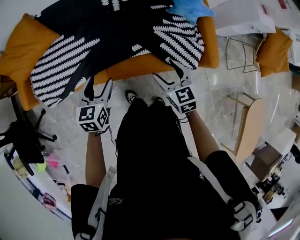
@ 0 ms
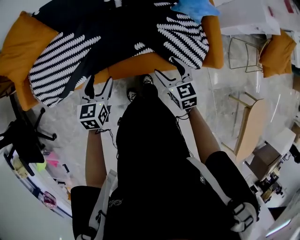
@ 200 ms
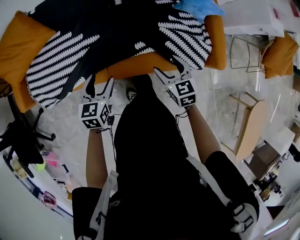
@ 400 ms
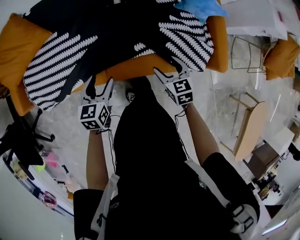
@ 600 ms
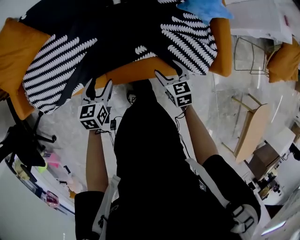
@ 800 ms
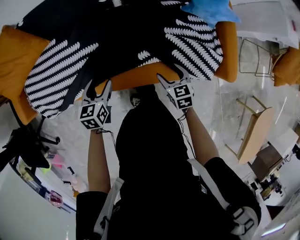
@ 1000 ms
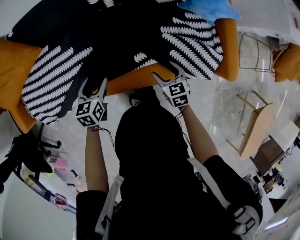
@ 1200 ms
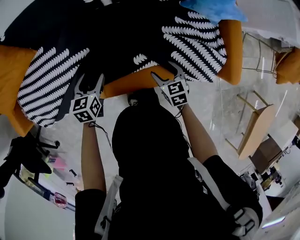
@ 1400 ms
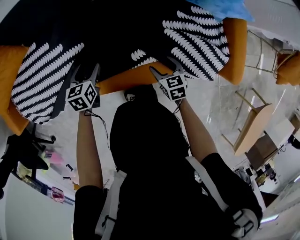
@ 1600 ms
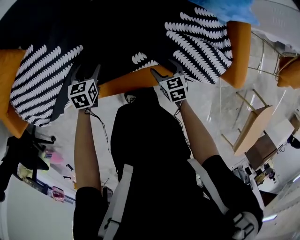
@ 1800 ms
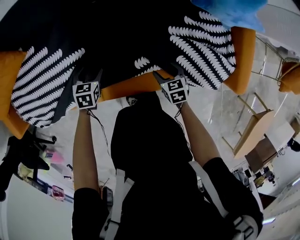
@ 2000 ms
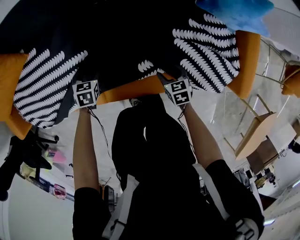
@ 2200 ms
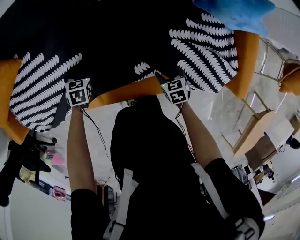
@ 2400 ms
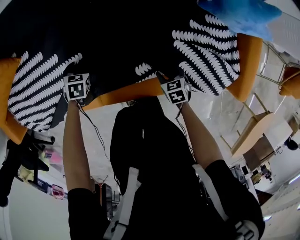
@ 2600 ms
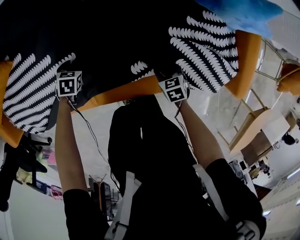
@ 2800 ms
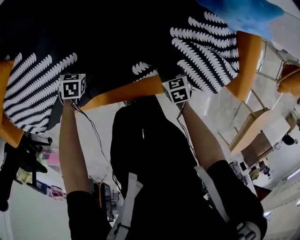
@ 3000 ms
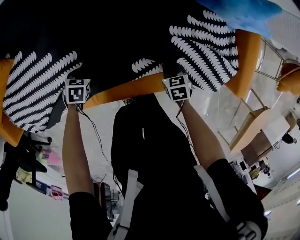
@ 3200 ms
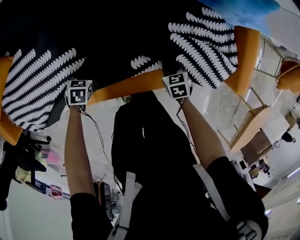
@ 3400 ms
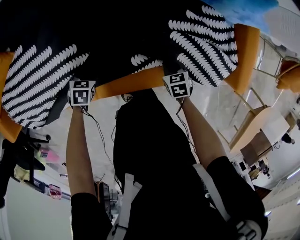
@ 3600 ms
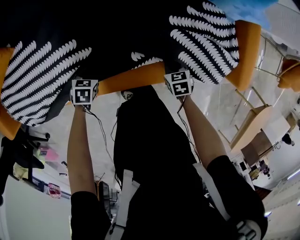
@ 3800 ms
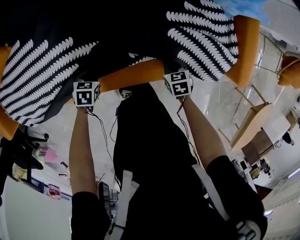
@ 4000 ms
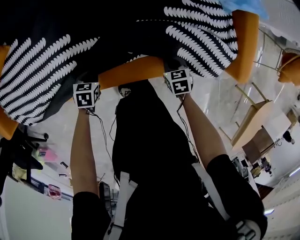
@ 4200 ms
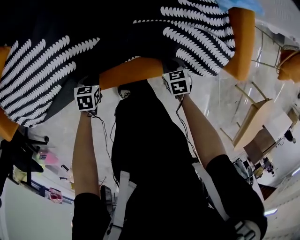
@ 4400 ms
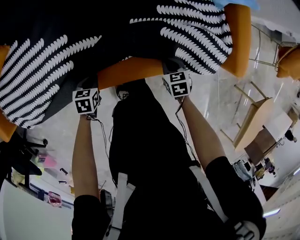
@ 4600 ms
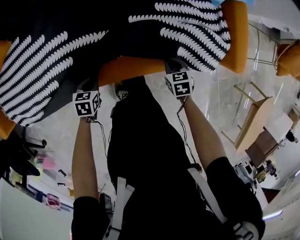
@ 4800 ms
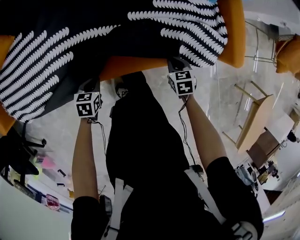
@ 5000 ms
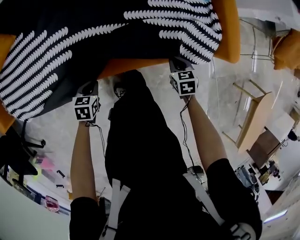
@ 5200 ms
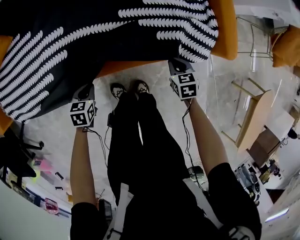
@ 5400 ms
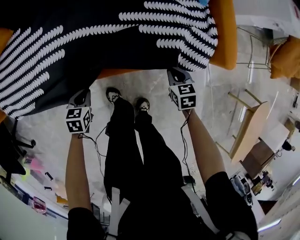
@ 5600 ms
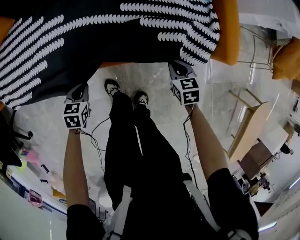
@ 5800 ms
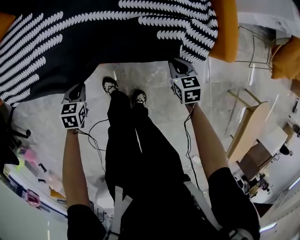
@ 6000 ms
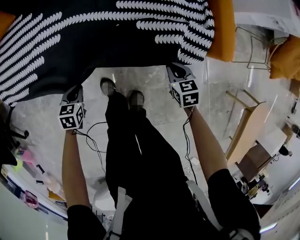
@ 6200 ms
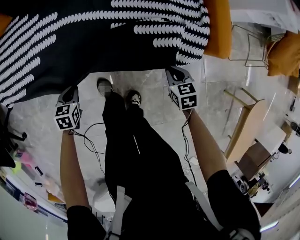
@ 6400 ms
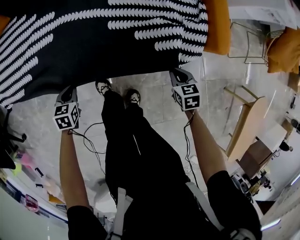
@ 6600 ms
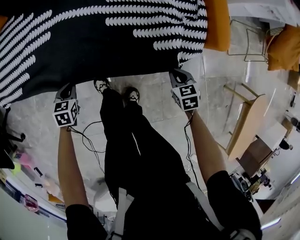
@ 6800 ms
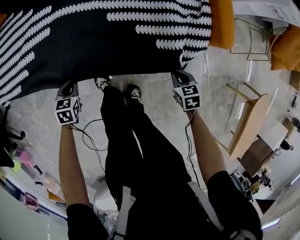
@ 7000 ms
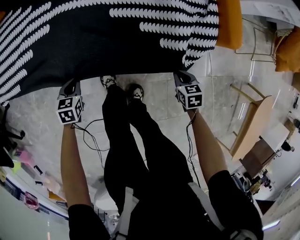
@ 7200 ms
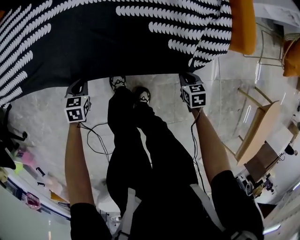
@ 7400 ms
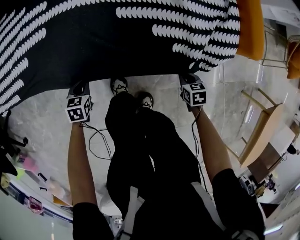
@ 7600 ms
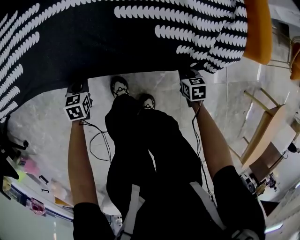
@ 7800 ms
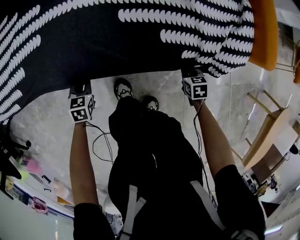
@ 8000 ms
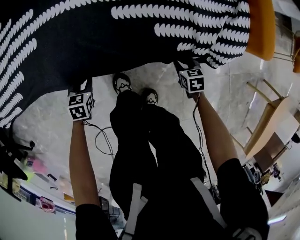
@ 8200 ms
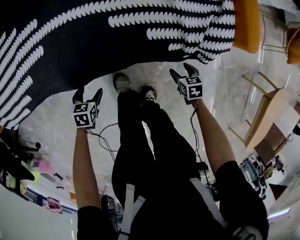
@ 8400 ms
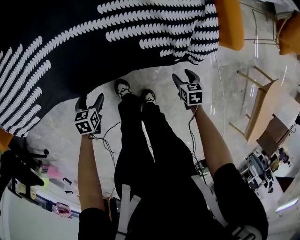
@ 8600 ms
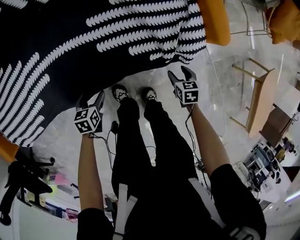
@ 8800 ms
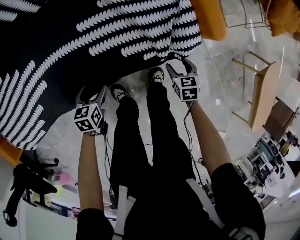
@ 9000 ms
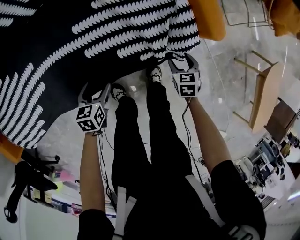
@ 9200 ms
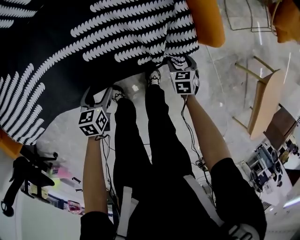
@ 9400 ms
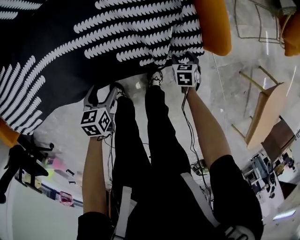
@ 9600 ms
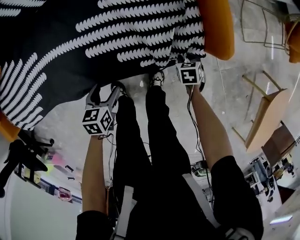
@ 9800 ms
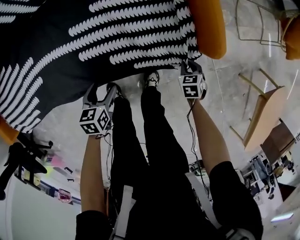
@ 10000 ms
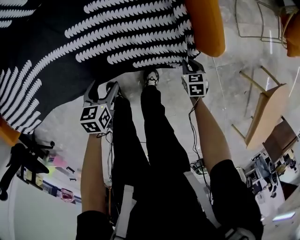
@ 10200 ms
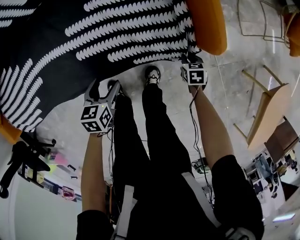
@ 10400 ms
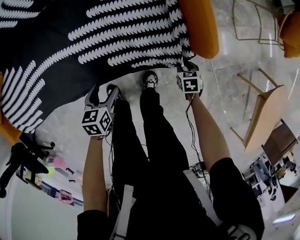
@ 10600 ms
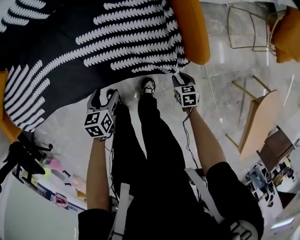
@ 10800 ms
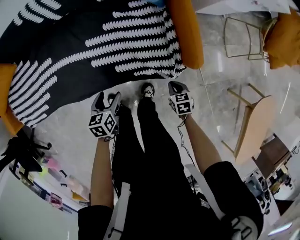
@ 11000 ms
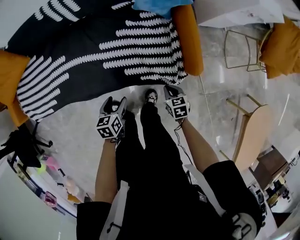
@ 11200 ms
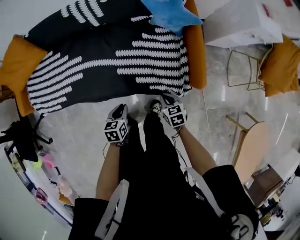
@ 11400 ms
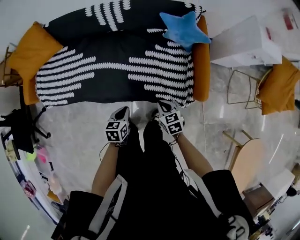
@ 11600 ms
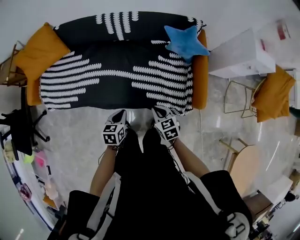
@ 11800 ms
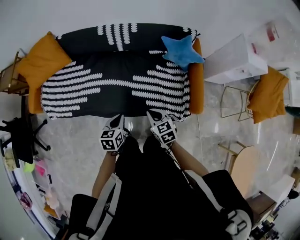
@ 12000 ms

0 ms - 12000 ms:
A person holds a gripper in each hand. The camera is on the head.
0 ms - 1600 ms: The right gripper moves downward, about 35 cm, and rotates approximately 20 degrees; the left gripper moves downward and forward, approximately 40 cm, and turns by approximately 20 degrees.
1600 ms - 3000 ms: The left gripper travels downward by approximately 15 cm, swivels roughly 30 degrees, and closes its fingers, while the right gripper goes roughly 10 cm downward, and closes its fingers.
3000 ms - 4400 ms: The left gripper shifts by some 15 cm. Meanwhile the right gripper shifts by roughly 5 cm, and closes up.
4400 ms - 6000 ms: The right gripper moves upward, backward and to the right, roughly 15 cm; the left gripper travels backward and upward by roughly 15 cm.
6000 ms - 7600 ms: The left gripper shifts approximately 20 cm downward. The right gripper heads downward and backward, covering roughly 25 cm.
7600 ms - 9000 ms: The right gripper travels upward by about 15 cm, and opens, while the left gripper changes place by some 25 cm, and opens up.
9000 ms - 10400 ms: The left gripper shifts by roughly 15 cm. The right gripper shifts by approximately 15 cm, and closes.
10400 ms - 12000 ms: The grippers both shift upward by some 40 cm. The left gripper rotates some 20 degrees, and closes; the right gripper tilts its fingers roughly 30 degrees upward.

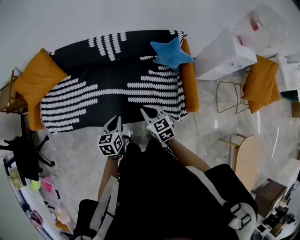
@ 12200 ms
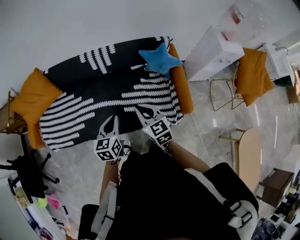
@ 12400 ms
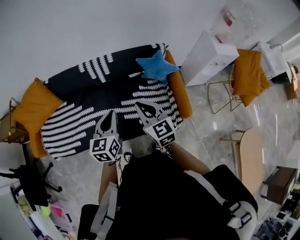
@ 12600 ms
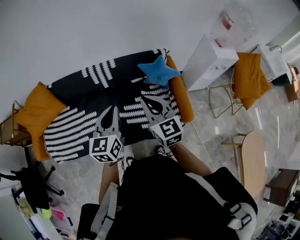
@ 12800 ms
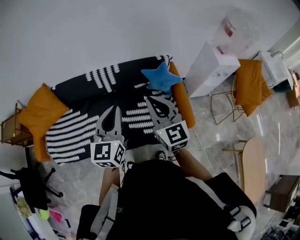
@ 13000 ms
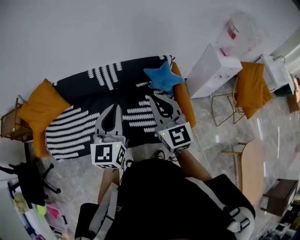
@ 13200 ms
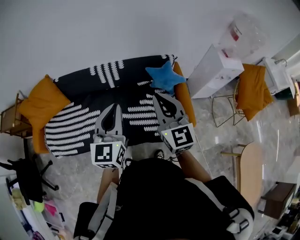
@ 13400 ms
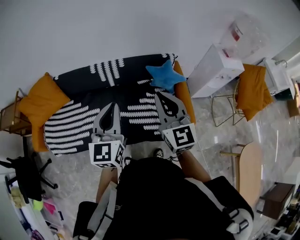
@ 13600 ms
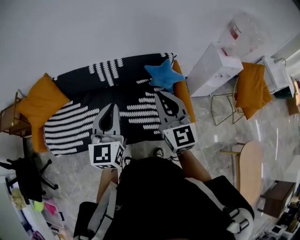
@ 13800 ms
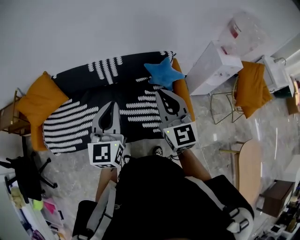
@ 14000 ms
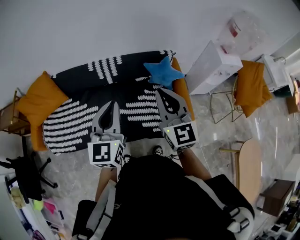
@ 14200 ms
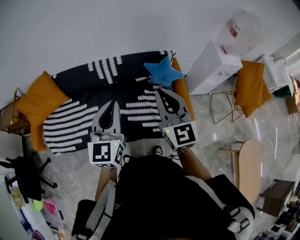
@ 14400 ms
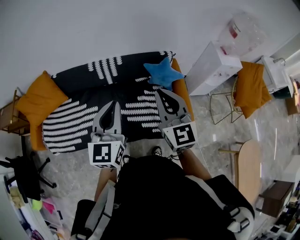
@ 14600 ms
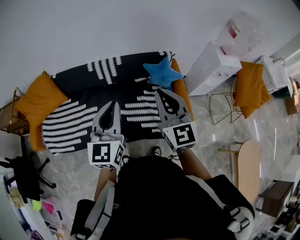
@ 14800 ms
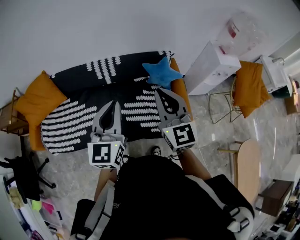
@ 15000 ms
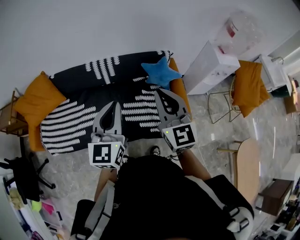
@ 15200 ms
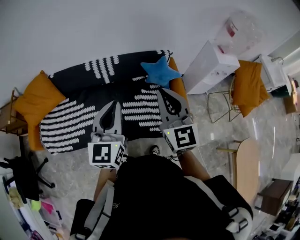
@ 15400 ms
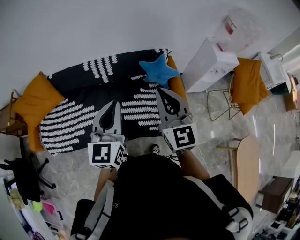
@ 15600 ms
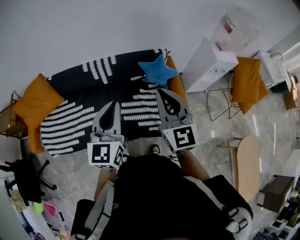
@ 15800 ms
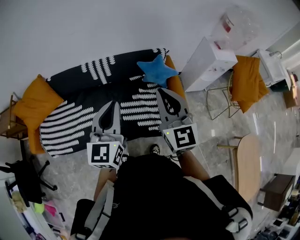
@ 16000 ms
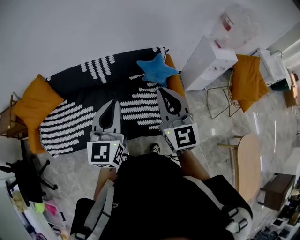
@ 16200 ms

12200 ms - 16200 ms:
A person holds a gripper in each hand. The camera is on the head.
12200 ms - 13600 ms: Both grippers travel together upward, roughly 30 cm. The left gripper tilts its fingers approximately 30 degrees upward. The right gripper points its fingers some 30 degrees further upward.
13600 ms - 16200 ms: There are only small adjustments of the grippers.

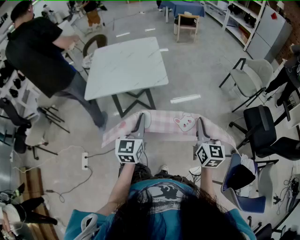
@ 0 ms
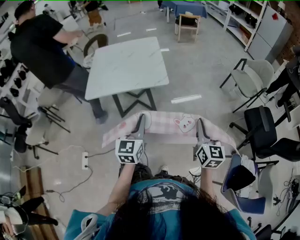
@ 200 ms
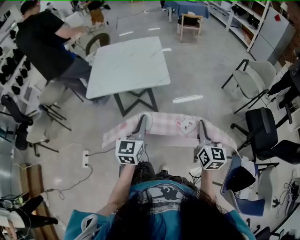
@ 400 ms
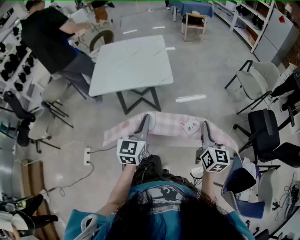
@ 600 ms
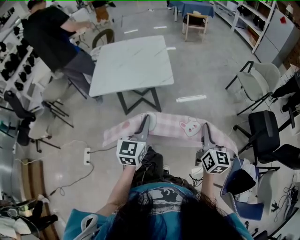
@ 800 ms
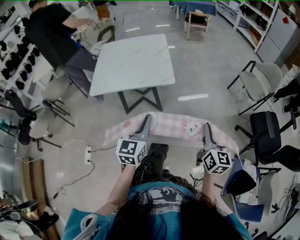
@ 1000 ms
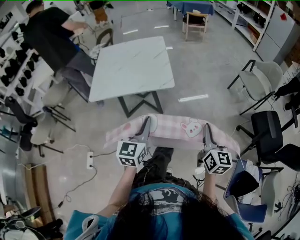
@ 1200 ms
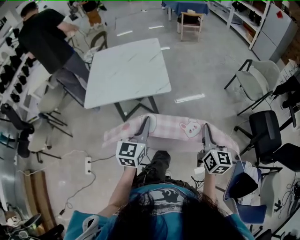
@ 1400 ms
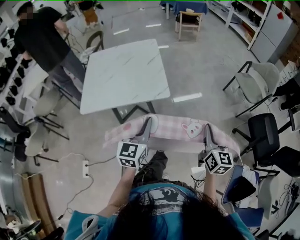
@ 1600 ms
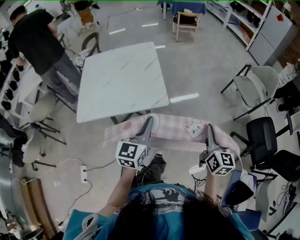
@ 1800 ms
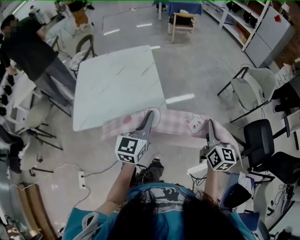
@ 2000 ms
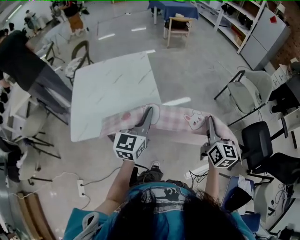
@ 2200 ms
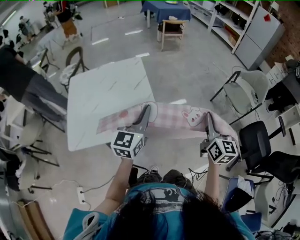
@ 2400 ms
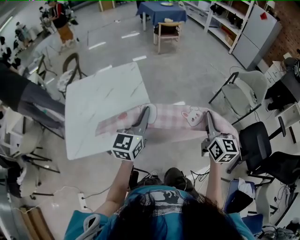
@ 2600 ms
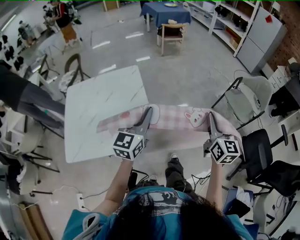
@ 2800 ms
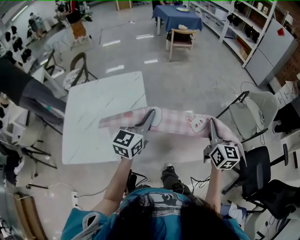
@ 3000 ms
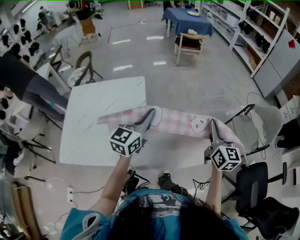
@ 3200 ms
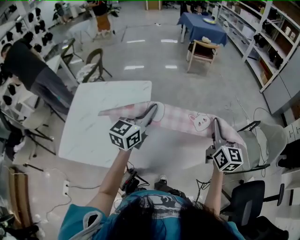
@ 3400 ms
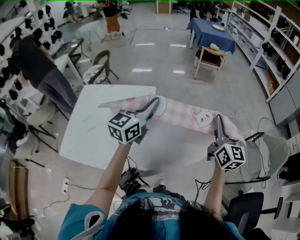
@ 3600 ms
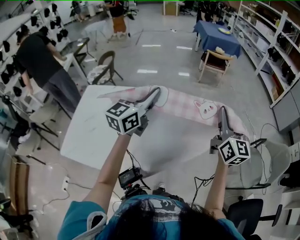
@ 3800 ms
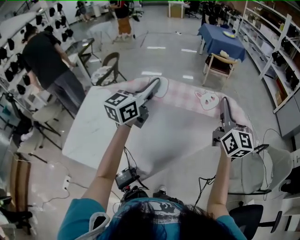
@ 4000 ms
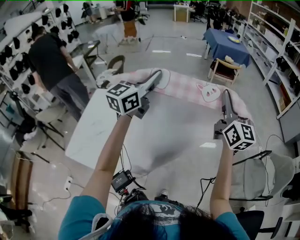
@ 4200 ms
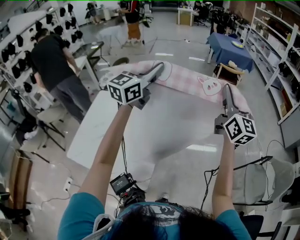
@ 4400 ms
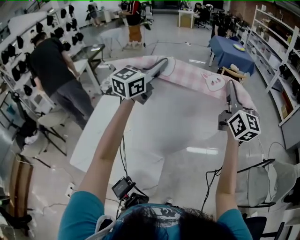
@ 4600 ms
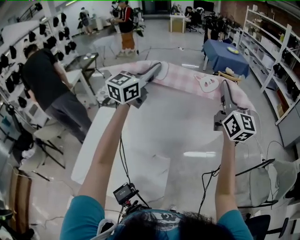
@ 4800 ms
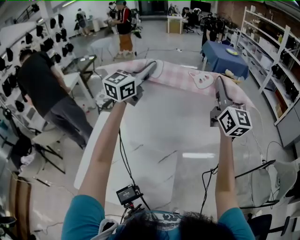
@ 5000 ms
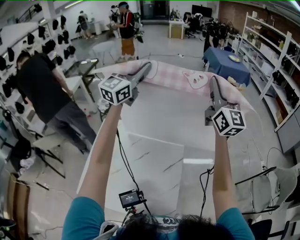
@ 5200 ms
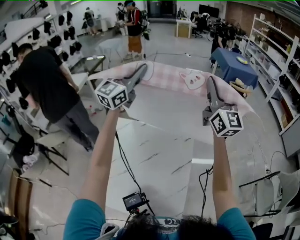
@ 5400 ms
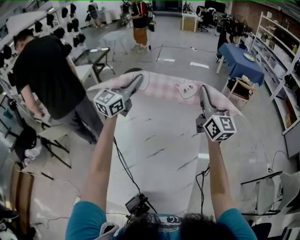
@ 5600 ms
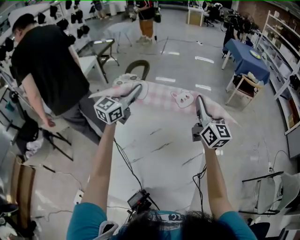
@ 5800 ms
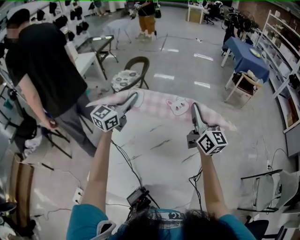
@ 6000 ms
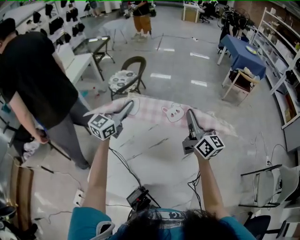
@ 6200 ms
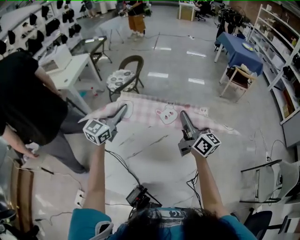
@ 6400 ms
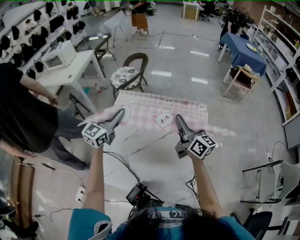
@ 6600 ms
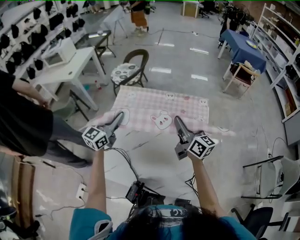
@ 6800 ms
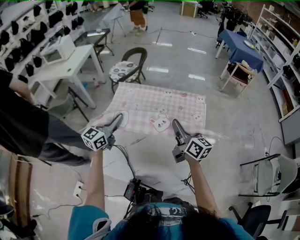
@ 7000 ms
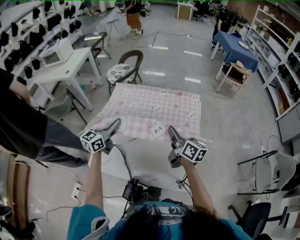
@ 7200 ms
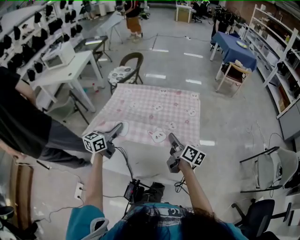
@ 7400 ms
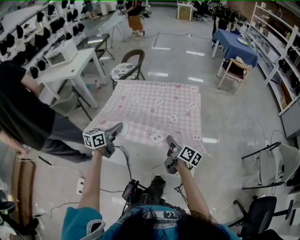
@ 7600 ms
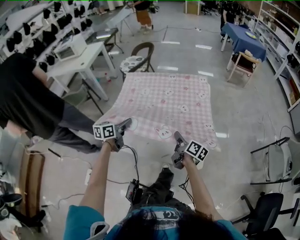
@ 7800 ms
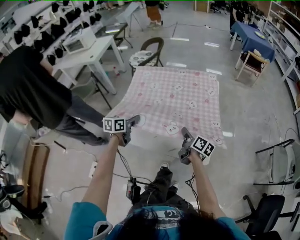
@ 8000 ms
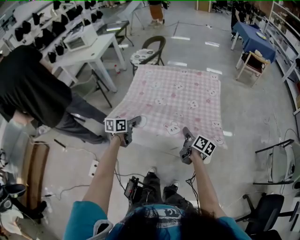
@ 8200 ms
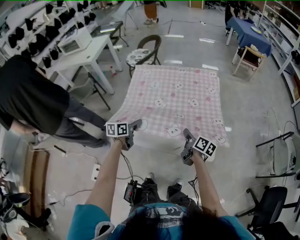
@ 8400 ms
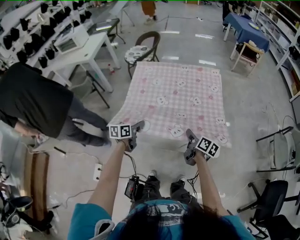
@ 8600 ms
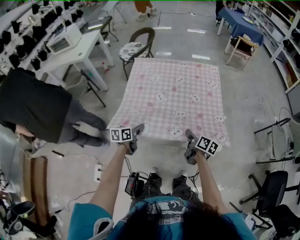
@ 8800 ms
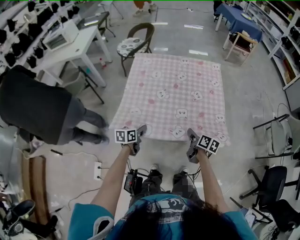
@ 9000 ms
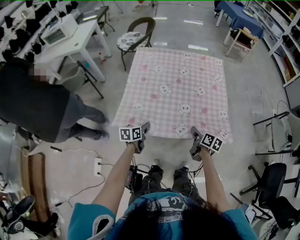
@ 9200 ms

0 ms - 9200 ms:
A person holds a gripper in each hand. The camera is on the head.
0 ms - 1600 ms: Both grippers move forward, some 10 cm.
1600 ms - 3000 ms: The two grippers go roughly 35 cm forward.
3000 ms - 4600 ms: The two grippers go some 40 cm forward, upward and to the left. The right gripper swivels about 30 degrees.
4600 ms - 6200 ms: The grippers both shift to the left and downward by some 40 cm. The right gripper changes its angle by about 30 degrees.
6200 ms - 7600 ms: The two grippers go some 30 cm backward and downward. The left gripper swivels some 40 degrees; the right gripper rotates some 50 degrees.
7600 ms - 9200 ms: Both grippers move downward and backward, some 20 cm. The left gripper changes its angle by some 20 degrees. The right gripper rotates about 20 degrees.
